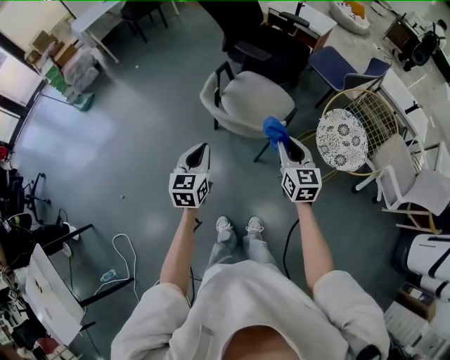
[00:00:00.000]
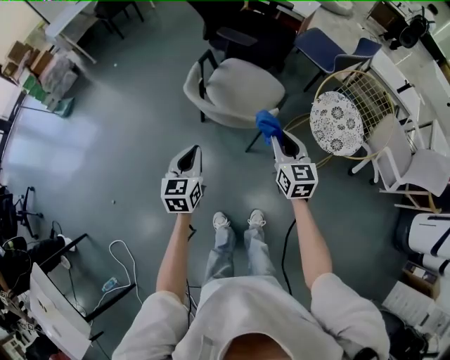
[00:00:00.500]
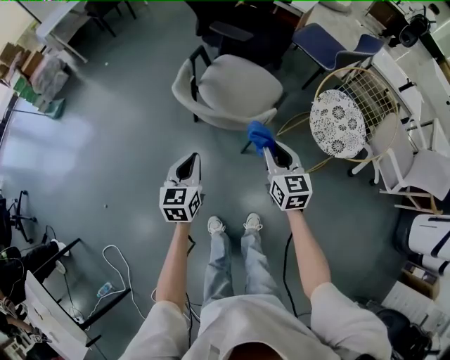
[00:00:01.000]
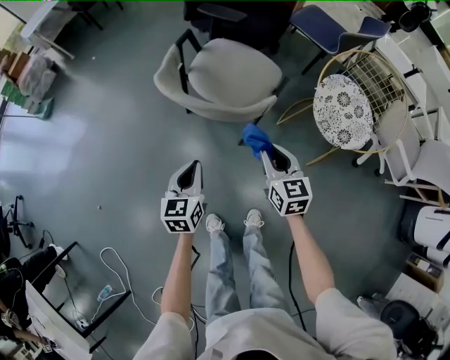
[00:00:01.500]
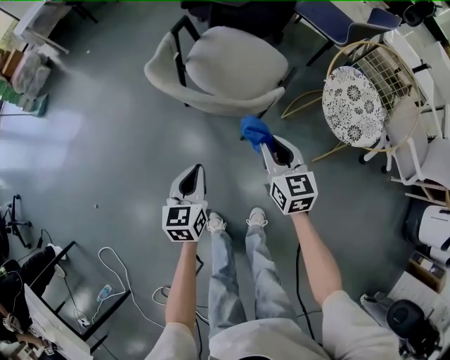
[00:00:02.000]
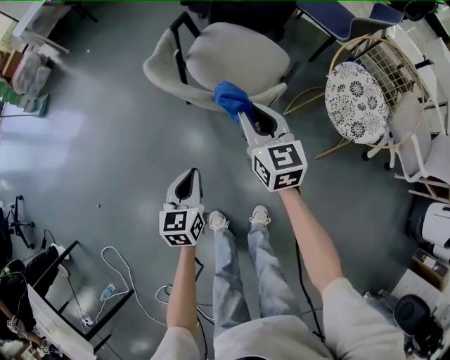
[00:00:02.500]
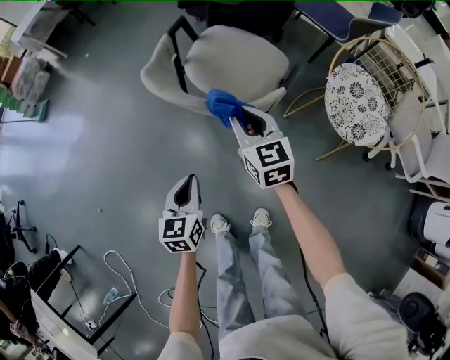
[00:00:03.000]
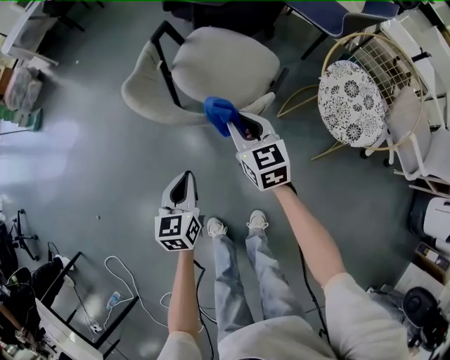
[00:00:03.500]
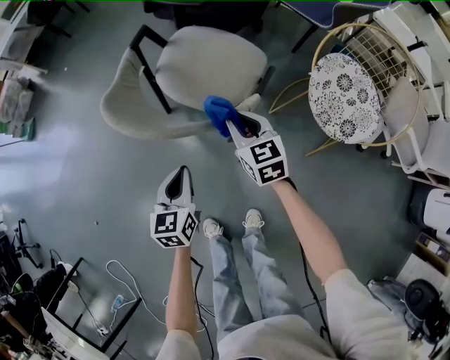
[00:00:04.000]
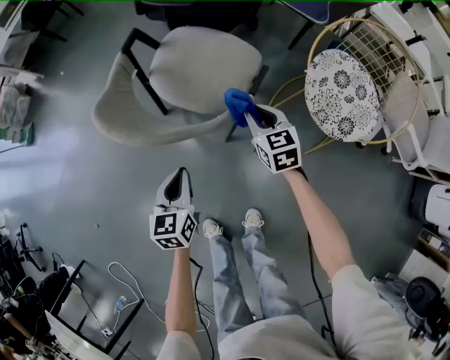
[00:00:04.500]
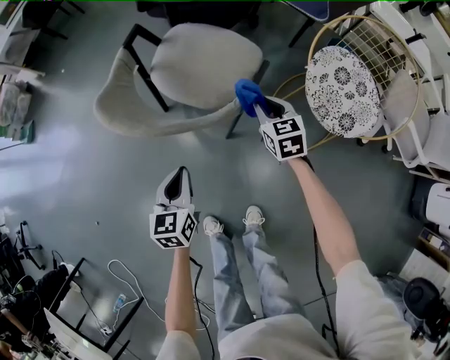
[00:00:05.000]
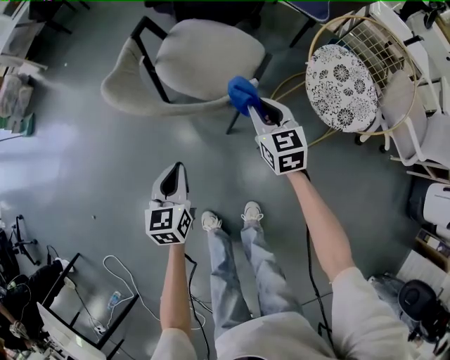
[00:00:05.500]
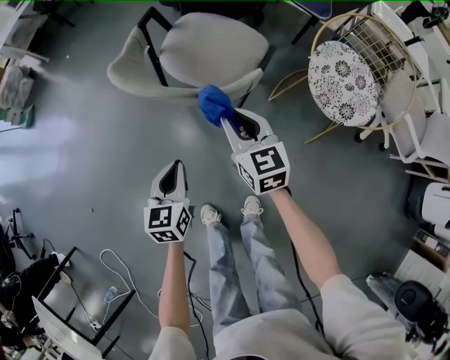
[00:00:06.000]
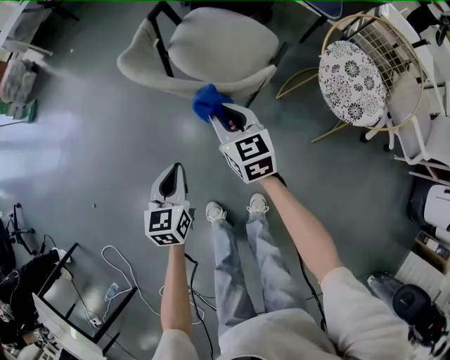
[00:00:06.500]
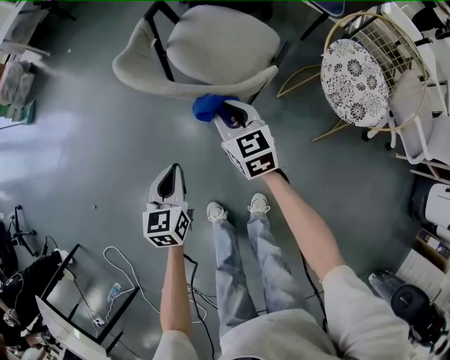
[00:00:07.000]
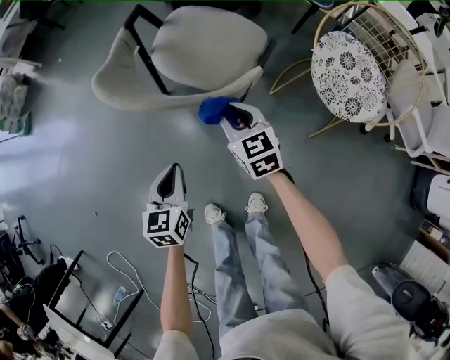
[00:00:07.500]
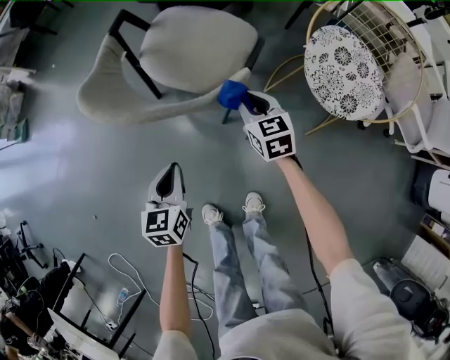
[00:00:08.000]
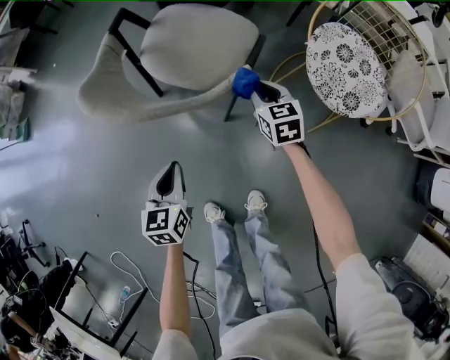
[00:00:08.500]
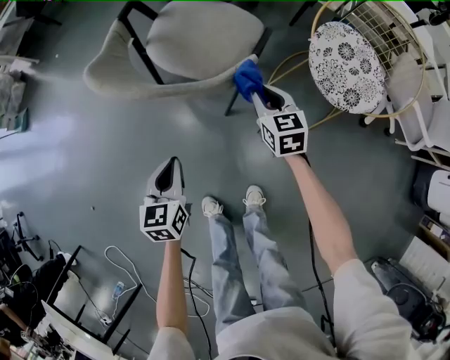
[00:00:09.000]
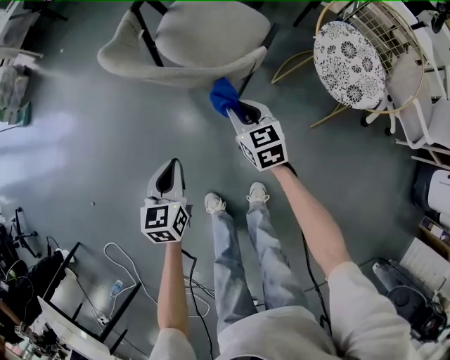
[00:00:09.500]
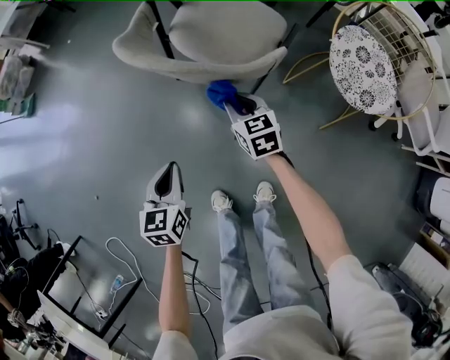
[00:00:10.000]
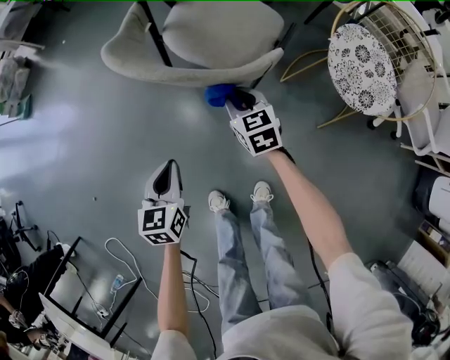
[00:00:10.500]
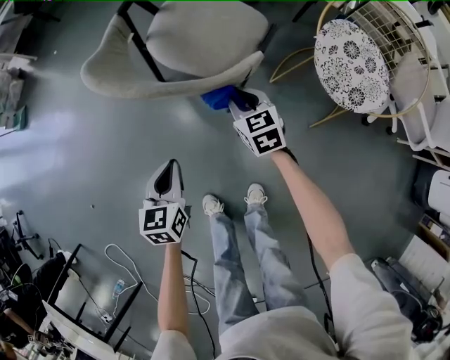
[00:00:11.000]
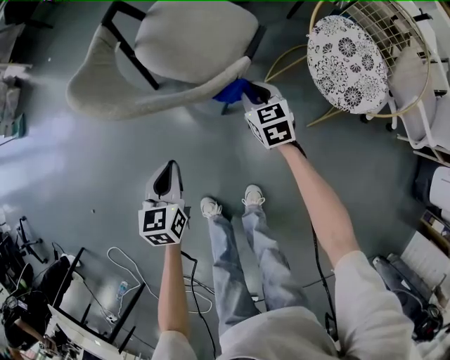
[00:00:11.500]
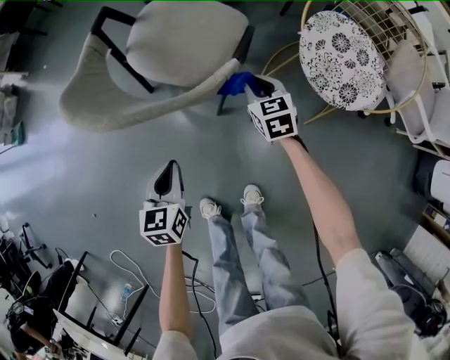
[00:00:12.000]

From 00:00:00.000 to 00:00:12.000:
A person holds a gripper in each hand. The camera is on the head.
From 00:00:00.000 to 00:00:02.000: Both grippers travel together downward, roughly 25 cm.
From 00:00:02.000 to 00:00:04.000: The right gripper moves forward and downward, roughly 15 cm. Meanwhile the left gripper goes some 5 cm forward.
From 00:00:04.000 to 00:00:06.000: The left gripper moves backward, approximately 5 cm. Meanwhile the right gripper moves backward and upward, about 10 cm, and travels to the right and back again, roughly 10 cm each way.
From 00:00:06.000 to 00:00:08.000: The left gripper ends up approximately 5 cm from where it was. Meanwhile the right gripper shifts some 15 cm downward, to the right and forward.
From 00:00:08.000 to 00:00:10.000: The two grippers go some 15 cm to the left and backward.
From 00:00:10.000 to 00:00:12.000: The left gripper heads to the right and forward, covering roughly 15 cm, while the right gripper moves to the right, some 20 cm.

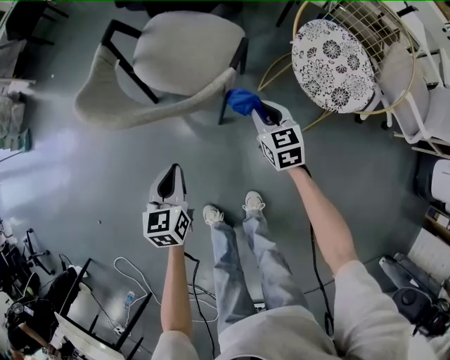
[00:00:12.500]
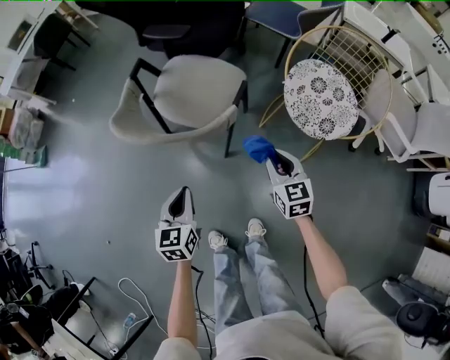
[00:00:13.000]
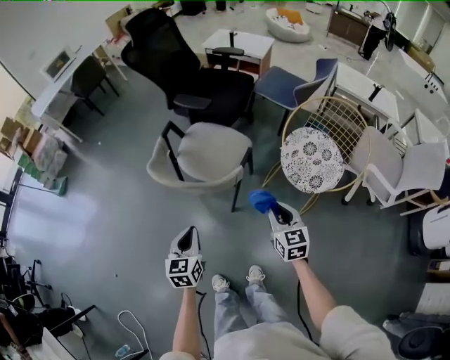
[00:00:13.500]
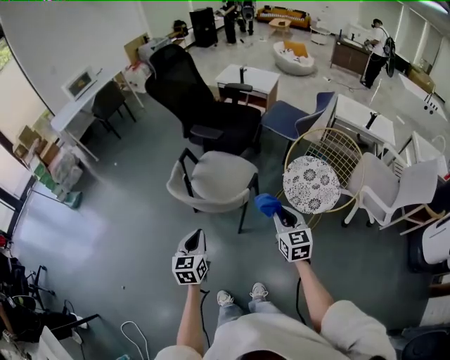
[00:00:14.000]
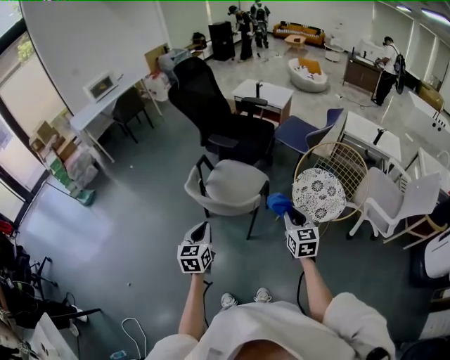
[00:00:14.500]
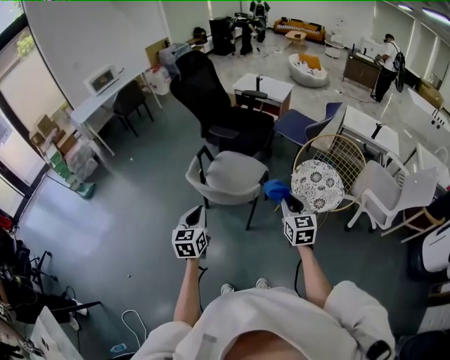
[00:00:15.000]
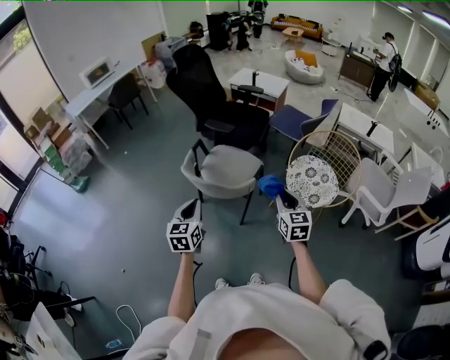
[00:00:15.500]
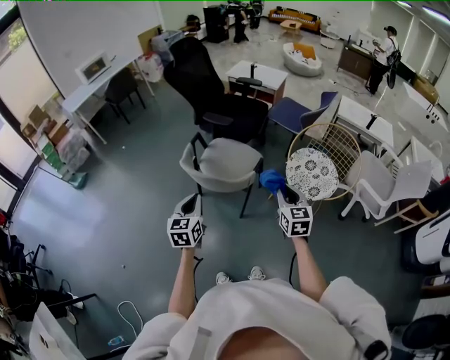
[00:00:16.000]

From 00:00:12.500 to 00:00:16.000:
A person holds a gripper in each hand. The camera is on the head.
From 00:00:12.500 to 00:00:14.500: The two grippers go about 40 cm upward.
From 00:00:14.500 to 00:00:16.000: The grippers stay close to where they were, moving slightly.

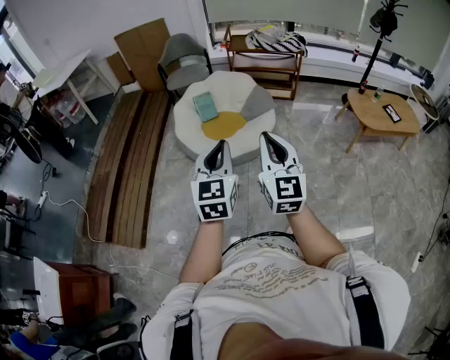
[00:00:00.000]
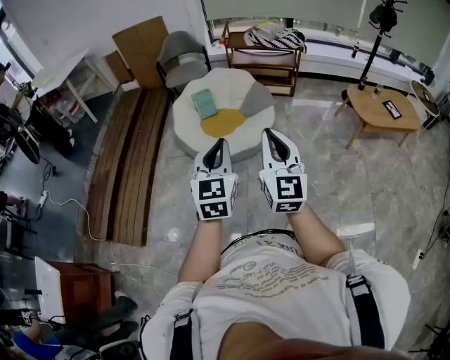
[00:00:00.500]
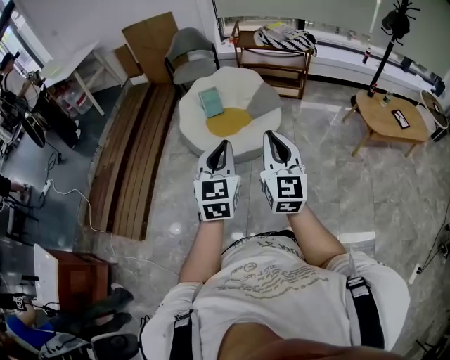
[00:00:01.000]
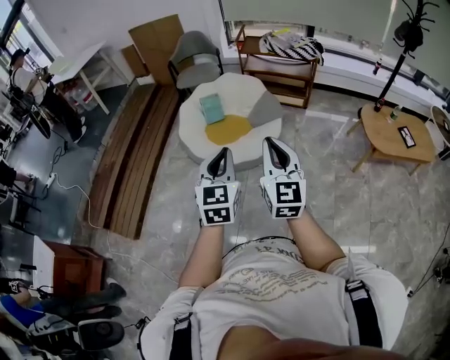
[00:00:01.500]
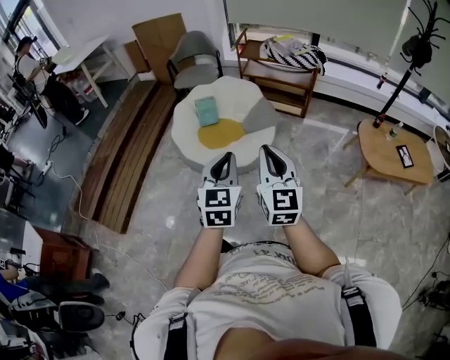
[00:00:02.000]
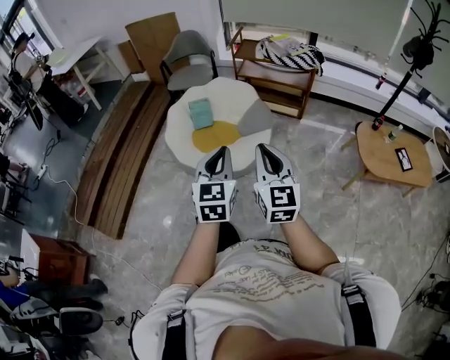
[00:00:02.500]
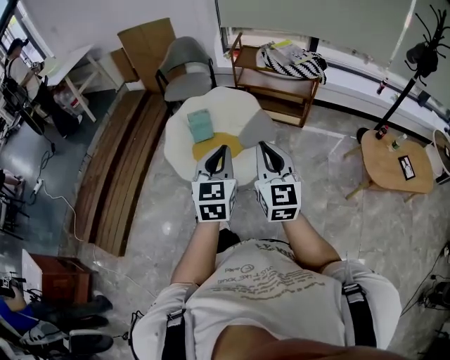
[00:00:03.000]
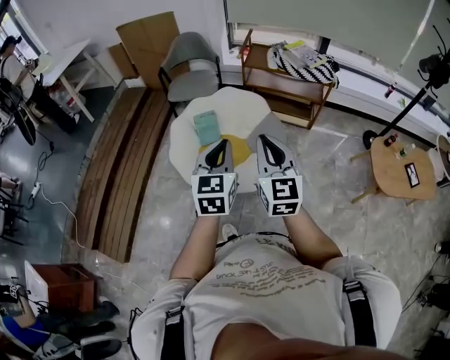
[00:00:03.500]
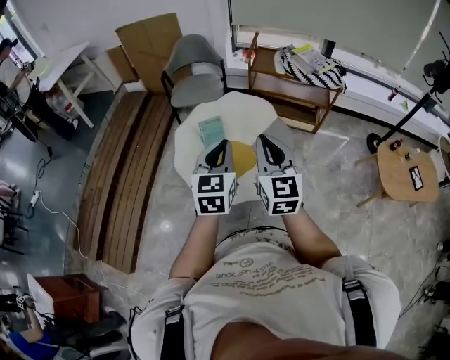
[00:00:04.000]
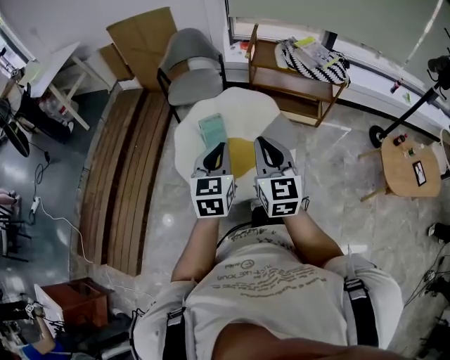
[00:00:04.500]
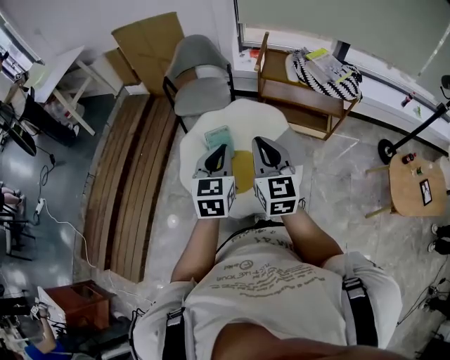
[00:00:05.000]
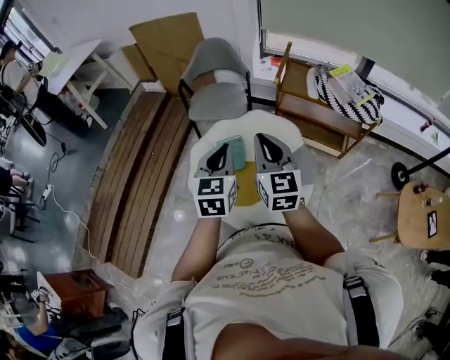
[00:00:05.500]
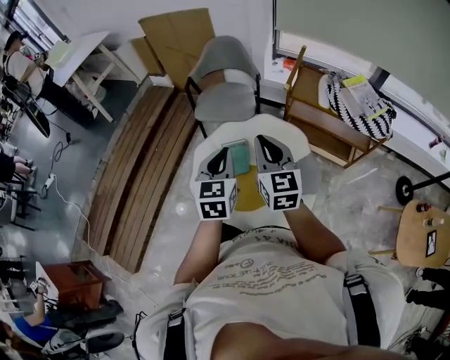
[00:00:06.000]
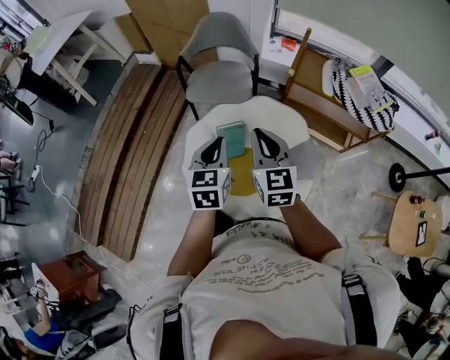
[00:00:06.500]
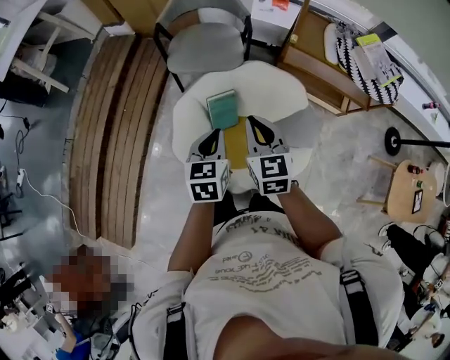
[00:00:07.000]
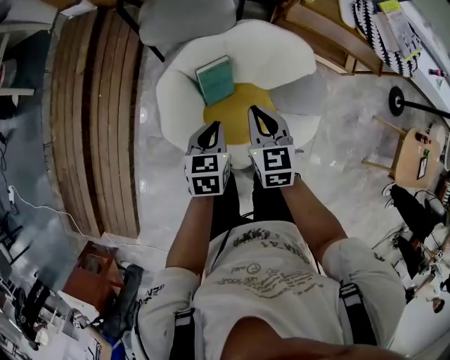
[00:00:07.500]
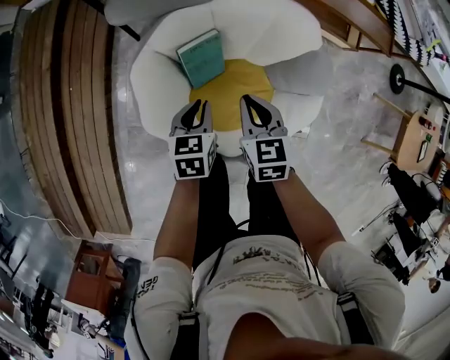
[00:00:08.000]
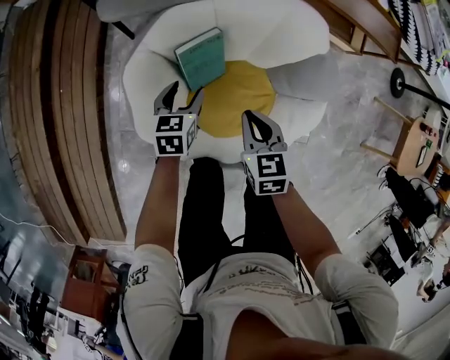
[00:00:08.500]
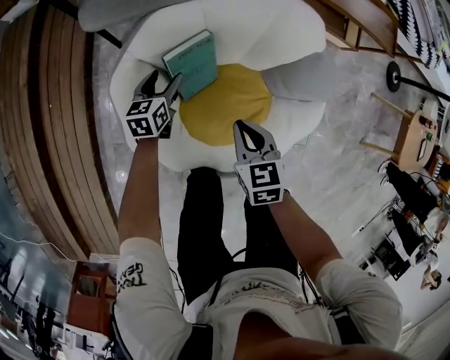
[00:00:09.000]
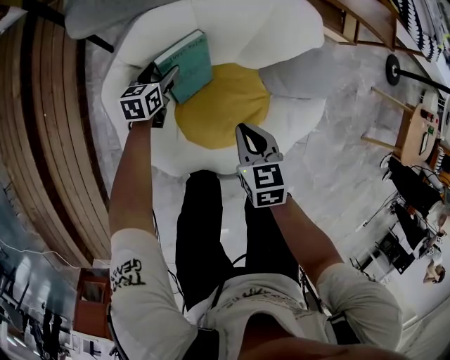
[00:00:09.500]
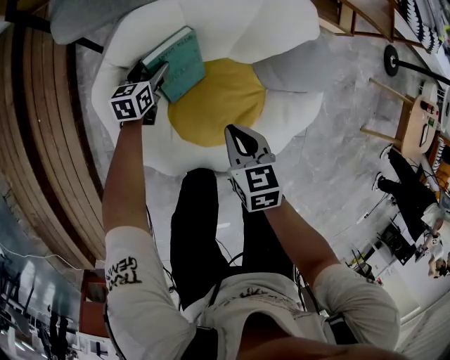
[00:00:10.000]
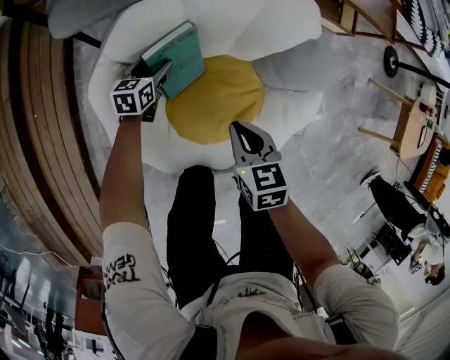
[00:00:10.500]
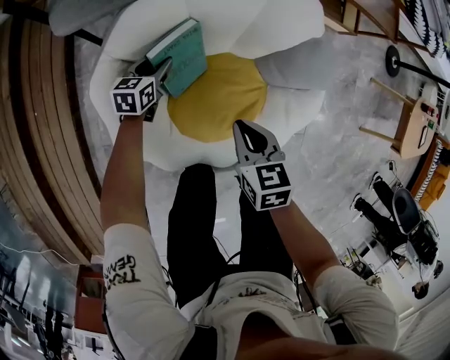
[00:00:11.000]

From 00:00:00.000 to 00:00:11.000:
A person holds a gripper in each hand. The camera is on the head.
From 00:00:00.000 to 00:00:02.000: The grippers both shift to the right and forward by some 20 cm.
From 00:00:02.000 to 00:00:03.500: Both grippers move forward, about 30 cm.
From 00:00:03.500 to 00:00:05.500: The two grippers go some 30 cm forward.
From 00:00:05.500 to 00:00:07.500: The right gripper heads downward and forward, covering some 35 cm, and points its fingers some 30 degrees further downward. The left gripper shifts some 30 cm downward, and swivels roughly 40 degrees.
From 00:00:07.500 to 00:00:09.000: The right gripper heads downward, covering about 20 cm; the left gripper is displaced downward and forward by about 35 cm, and opens up.
From 00:00:09.000 to 00:00:11.000: The left gripper moves downward, roughly 5 cm.
